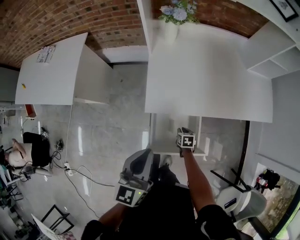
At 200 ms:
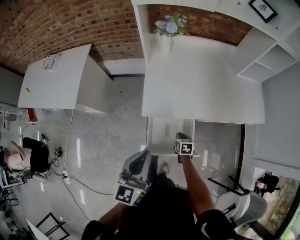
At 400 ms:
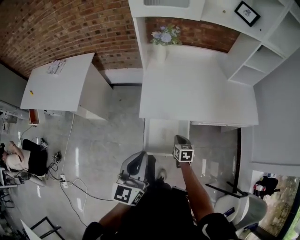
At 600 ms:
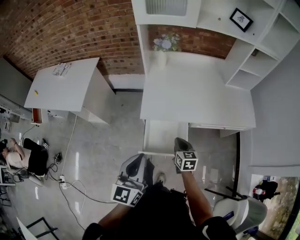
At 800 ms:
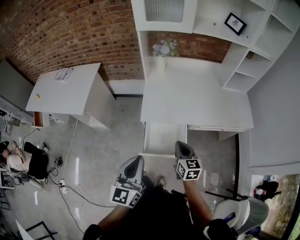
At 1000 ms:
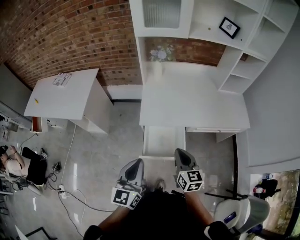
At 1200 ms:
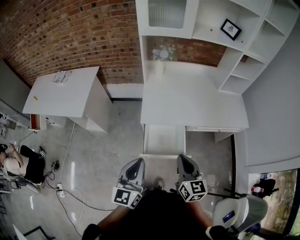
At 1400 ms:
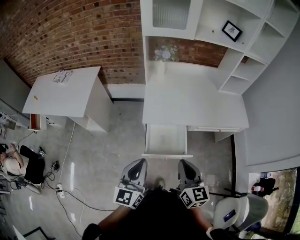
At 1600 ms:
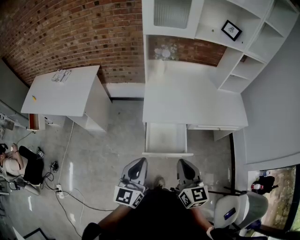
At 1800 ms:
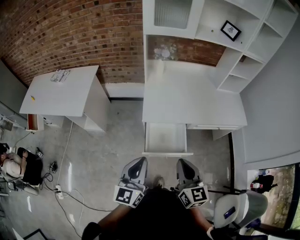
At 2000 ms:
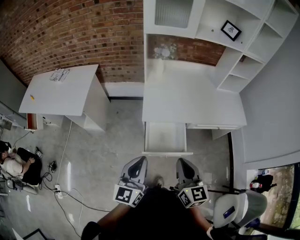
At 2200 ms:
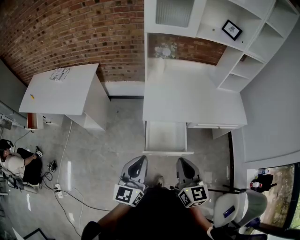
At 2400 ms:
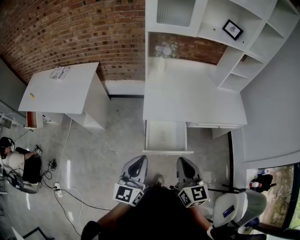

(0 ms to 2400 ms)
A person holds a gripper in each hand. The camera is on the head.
0 ms - 1200 ms: The left gripper heads backward and upward, covering approximately 20 cm. Meanwhile the right gripper goes about 50 cm upward and backward, and tilts its fingers about 50 degrees upward.
1200 ms - 2400 ms: The right gripper is displaced to the left by roughly 5 cm.

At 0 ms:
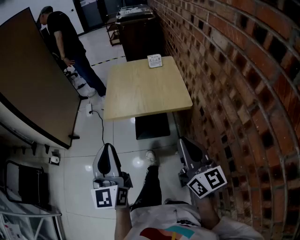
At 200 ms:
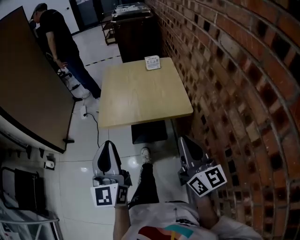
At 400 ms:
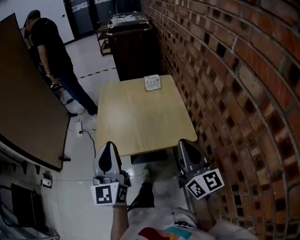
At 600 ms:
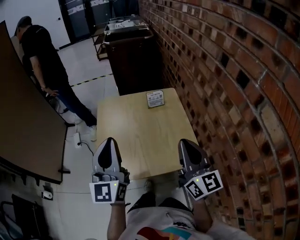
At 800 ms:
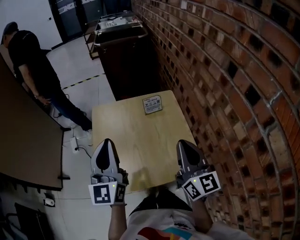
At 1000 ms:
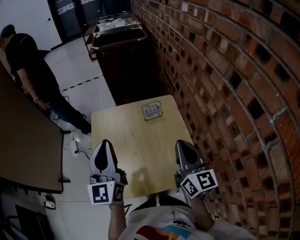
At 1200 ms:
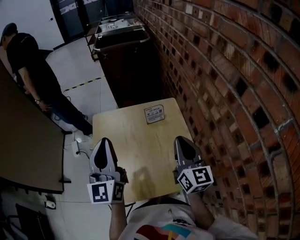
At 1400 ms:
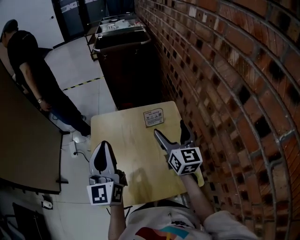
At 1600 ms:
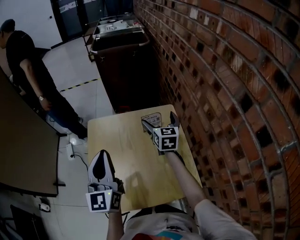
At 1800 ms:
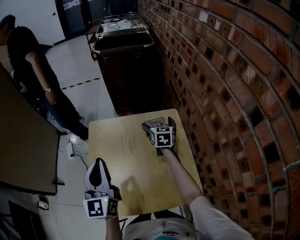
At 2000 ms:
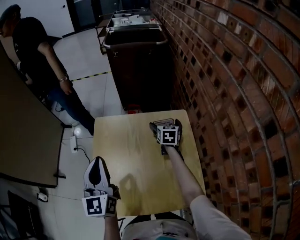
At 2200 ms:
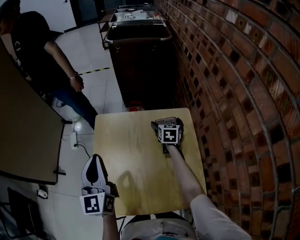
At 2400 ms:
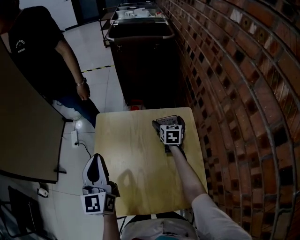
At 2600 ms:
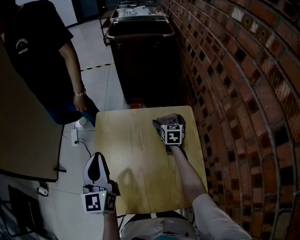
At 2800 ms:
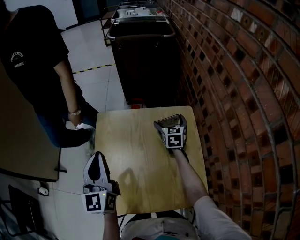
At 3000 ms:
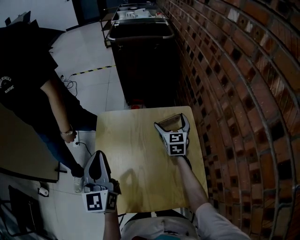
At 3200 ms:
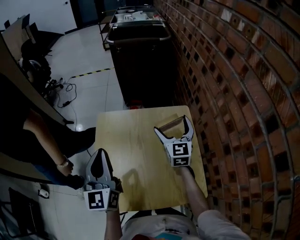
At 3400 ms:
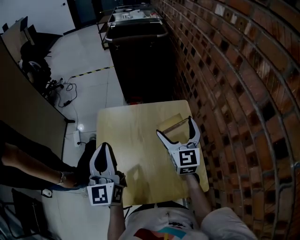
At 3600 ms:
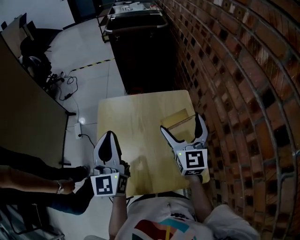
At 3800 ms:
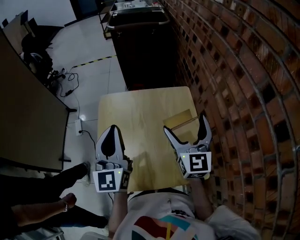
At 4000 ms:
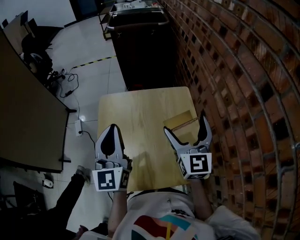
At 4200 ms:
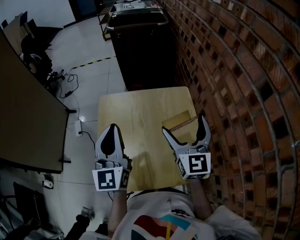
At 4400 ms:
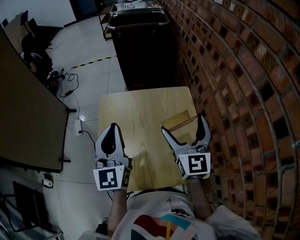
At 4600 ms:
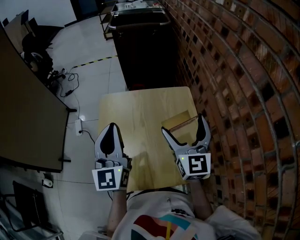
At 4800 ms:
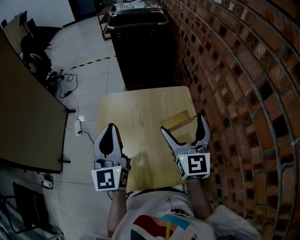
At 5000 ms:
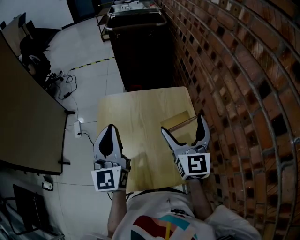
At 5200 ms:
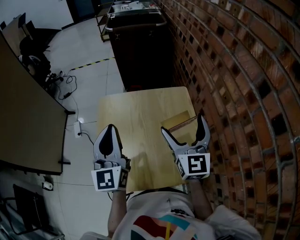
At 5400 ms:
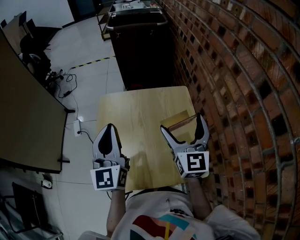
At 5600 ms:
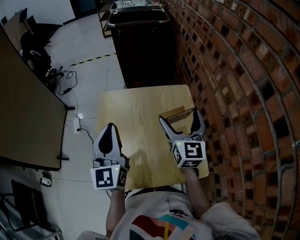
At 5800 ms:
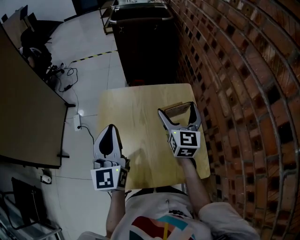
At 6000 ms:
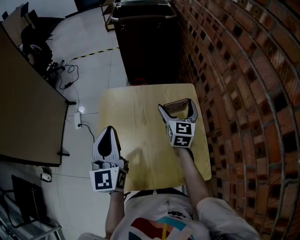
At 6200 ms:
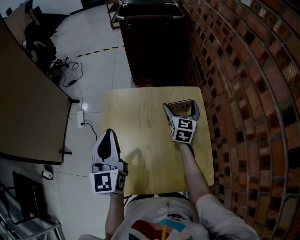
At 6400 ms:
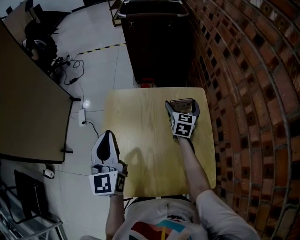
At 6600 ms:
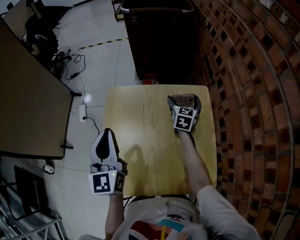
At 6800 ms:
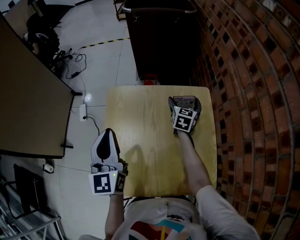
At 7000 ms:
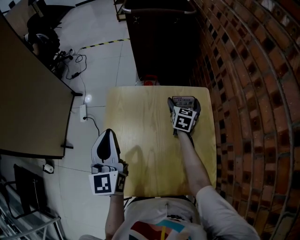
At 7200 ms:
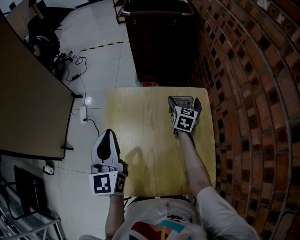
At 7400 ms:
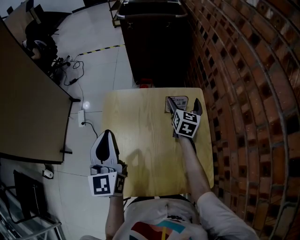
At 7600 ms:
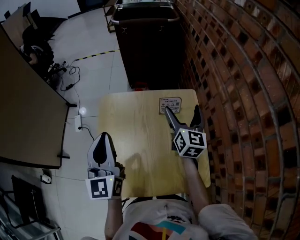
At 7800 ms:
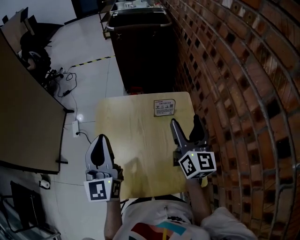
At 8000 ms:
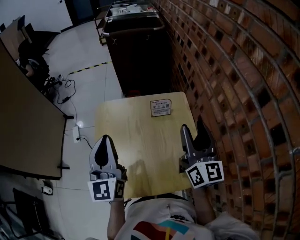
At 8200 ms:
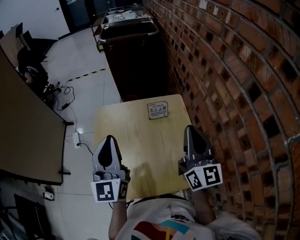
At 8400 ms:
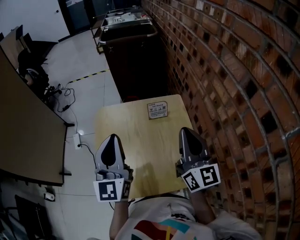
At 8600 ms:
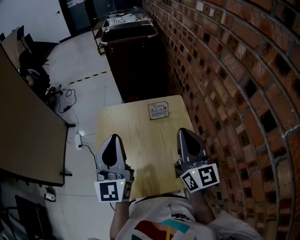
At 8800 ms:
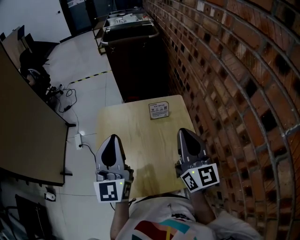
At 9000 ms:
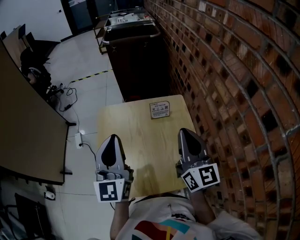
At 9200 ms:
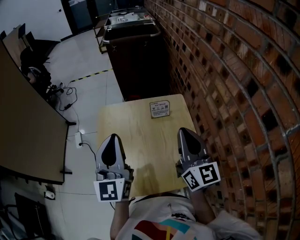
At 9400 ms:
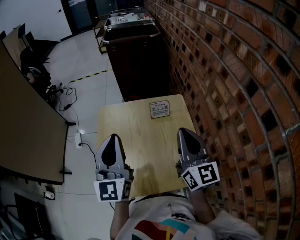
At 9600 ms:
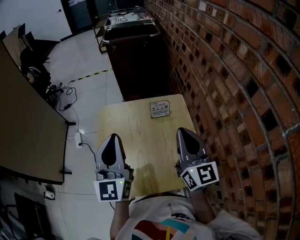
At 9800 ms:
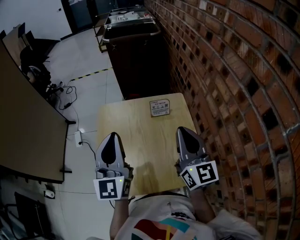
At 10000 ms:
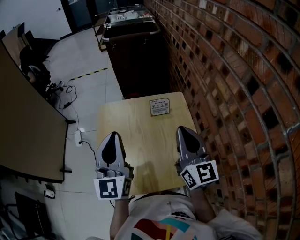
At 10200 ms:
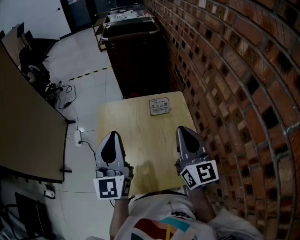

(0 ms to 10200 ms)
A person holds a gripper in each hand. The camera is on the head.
0 ms - 1400 ms: Both grippers are carried forward, some 60 cm. The right gripper opens.
1400 ms - 3000 ms: The right gripper moves forward and downward, about 20 cm, and rotates approximately 20 degrees. Meanwhile the left gripper moves to the left and downward, some 10 cm.
3000 ms - 4400 ms: The right gripper goes about 25 cm backward and upward. The left gripper travels to the right by some 5 cm.
4400 ms - 5800 ms: The right gripper travels forward and downward by some 10 cm.
5800 ms - 7200 ms: The right gripper shifts roughly 20 cm forward and downward, and turns by roughly 20 degrees, while the left gripper ends up some 5 cm from where it was.
7200 ms - 8800 ms: The left gripper goes roughly 15 cm to the right, upward and backward. The right gripper shifts approximately 40 cm backward and upward, tips its fingers upward by roughly 30 degrees, and closes up.
8800 ms - 10200 ms: Neither gripper changes place.

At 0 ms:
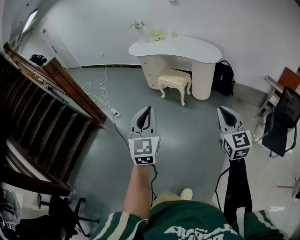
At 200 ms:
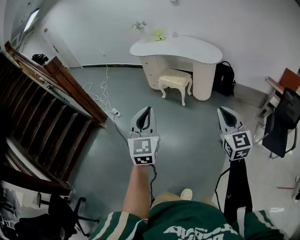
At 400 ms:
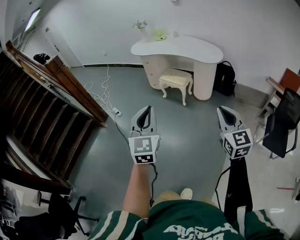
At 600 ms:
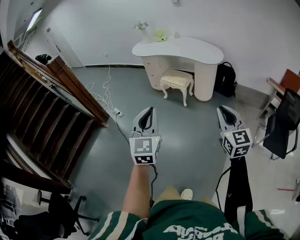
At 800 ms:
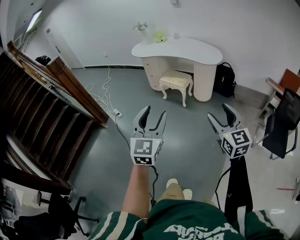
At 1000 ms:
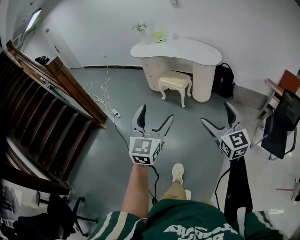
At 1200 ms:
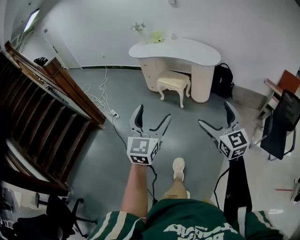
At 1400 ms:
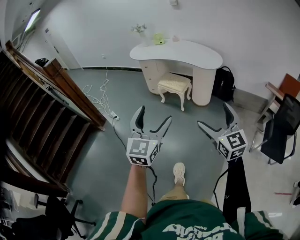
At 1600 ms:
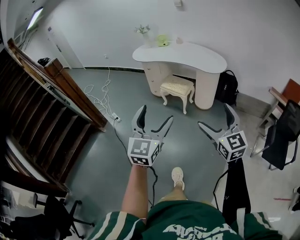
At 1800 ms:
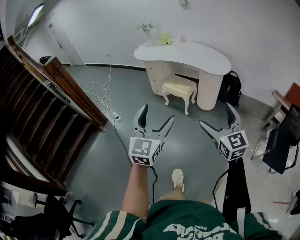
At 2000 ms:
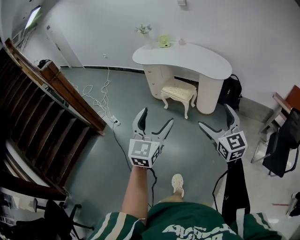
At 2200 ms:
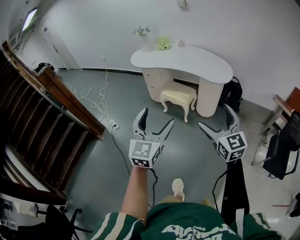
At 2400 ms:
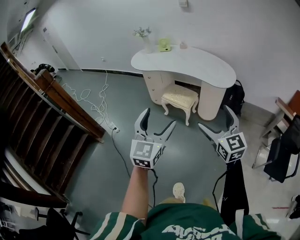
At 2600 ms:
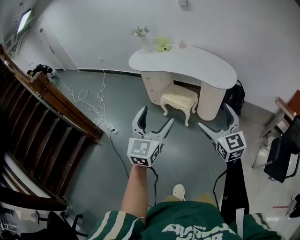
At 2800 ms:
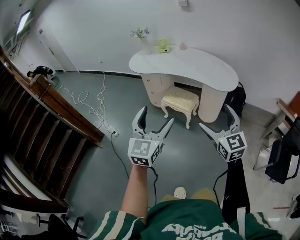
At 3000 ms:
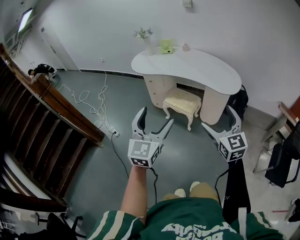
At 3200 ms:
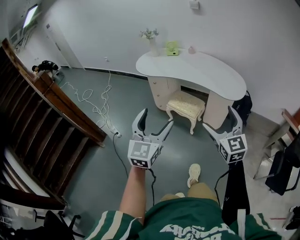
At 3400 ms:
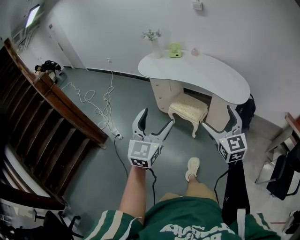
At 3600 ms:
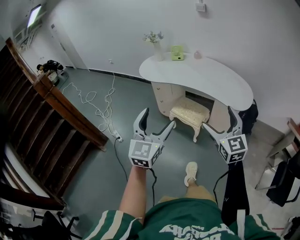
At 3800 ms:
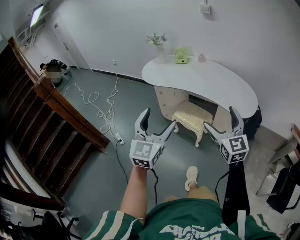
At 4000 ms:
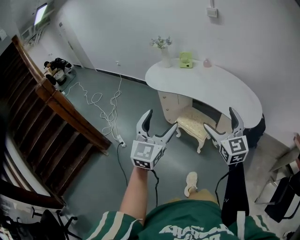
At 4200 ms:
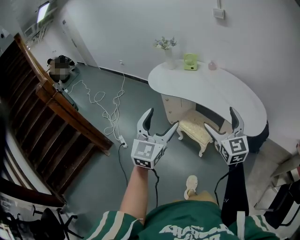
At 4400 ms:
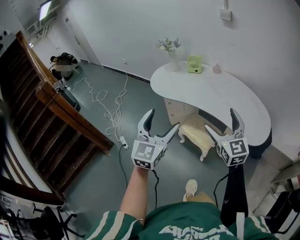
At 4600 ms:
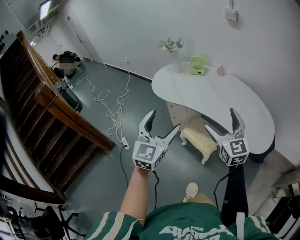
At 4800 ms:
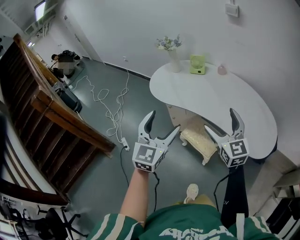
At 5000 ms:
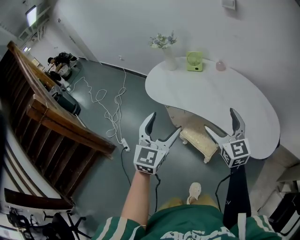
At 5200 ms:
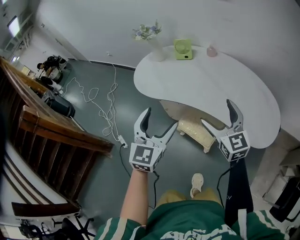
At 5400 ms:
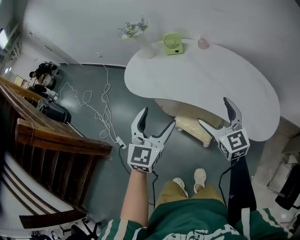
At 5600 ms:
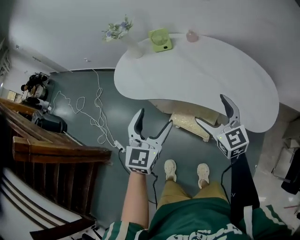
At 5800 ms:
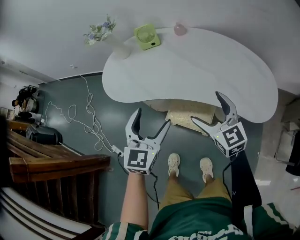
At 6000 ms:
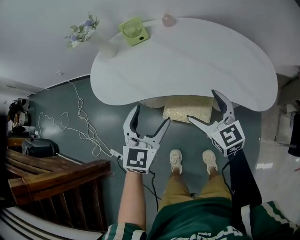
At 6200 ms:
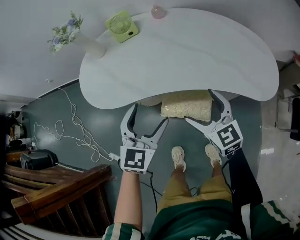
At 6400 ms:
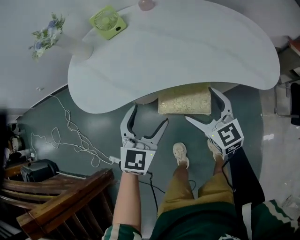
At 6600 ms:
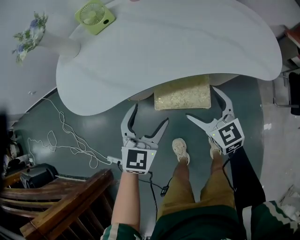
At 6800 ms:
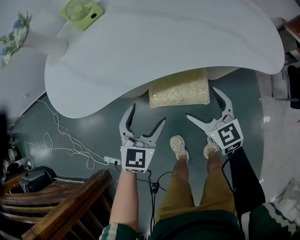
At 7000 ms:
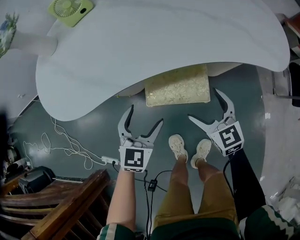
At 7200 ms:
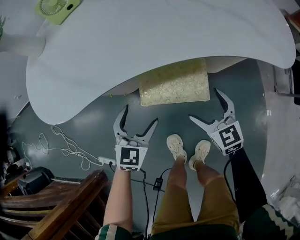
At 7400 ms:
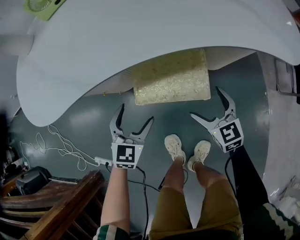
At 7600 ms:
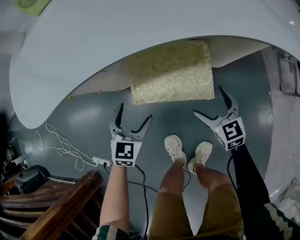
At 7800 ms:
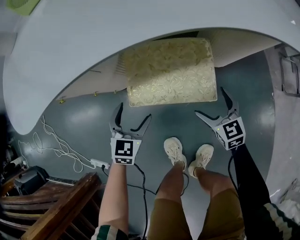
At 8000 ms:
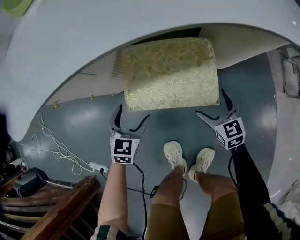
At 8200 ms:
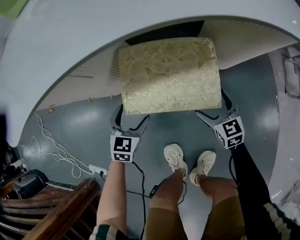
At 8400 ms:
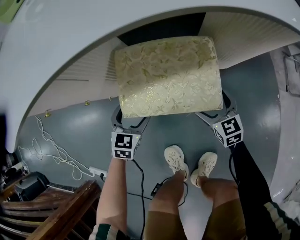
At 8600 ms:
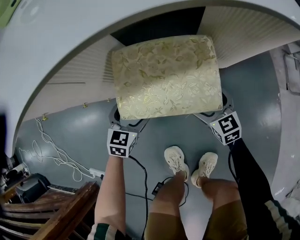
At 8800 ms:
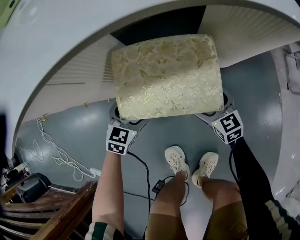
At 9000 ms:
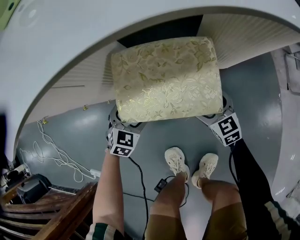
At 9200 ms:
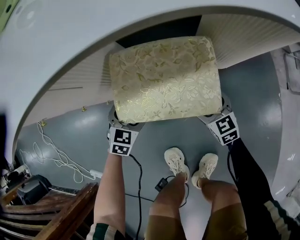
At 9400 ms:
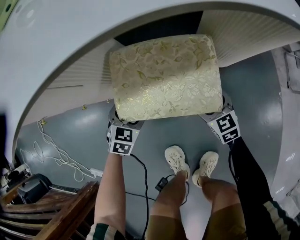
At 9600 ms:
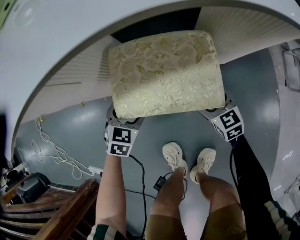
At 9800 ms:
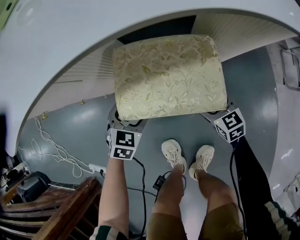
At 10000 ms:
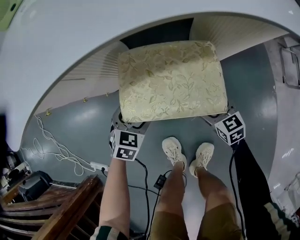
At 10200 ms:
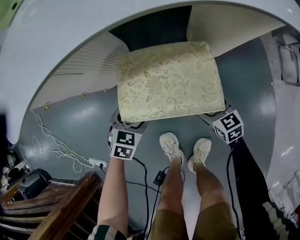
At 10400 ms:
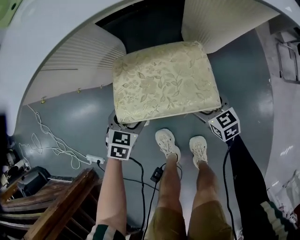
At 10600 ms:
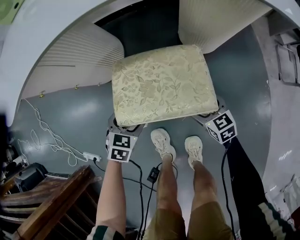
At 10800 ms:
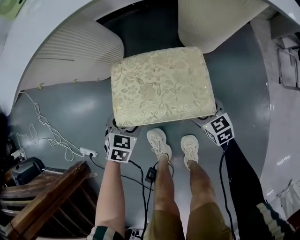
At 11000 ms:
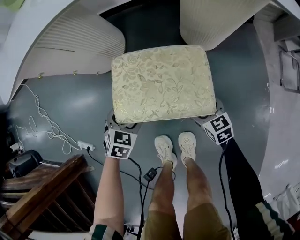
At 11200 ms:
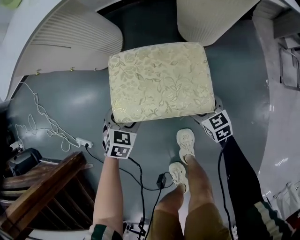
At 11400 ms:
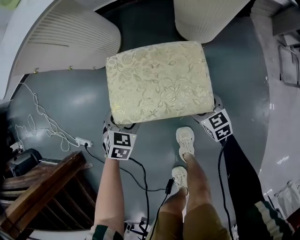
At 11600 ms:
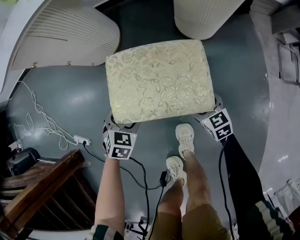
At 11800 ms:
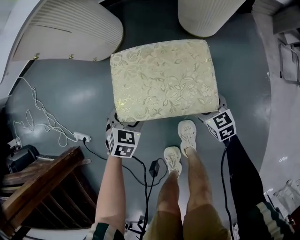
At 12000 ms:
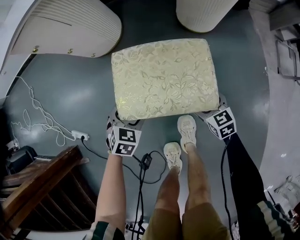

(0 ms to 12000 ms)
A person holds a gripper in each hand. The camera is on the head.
0 ms - 1600 ms: The grippers both shift forward by about 5 cm. The right gripper opens its fingers. The left gripper opens.
1600 ms - 3000 ms: The two grippers go about 30 cm forward.
3000 ms - 4400 ms: Both grippers move forward, some 35 cm.
4400 ms - 6000 ms: Both grippers travel together forward and downward, approximately 35 cm. The left gripper turns by some 30 degrees; the right gripper turns by some 20 degrees.
6000 ms - 7600 ms: The grippers both shift downward by about 50 cm. The right gripper changes its angle by about 30 degrees, while the left gripper changes its angle by roughly 20 degrees.
7600 ms - 9000 ms: The grippers both shift downward by some 20 cm. The left gripper rotates roughly 20 degrees.
9000 ms - 10400 ms: The left gripper moves about 5 cm, and turns by approximately 20 degrees.
10400 ms - 12000 ms: There are only small adjustments of the grippers.
